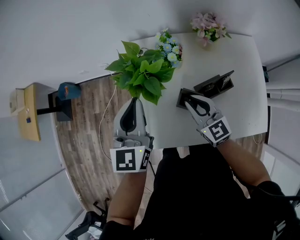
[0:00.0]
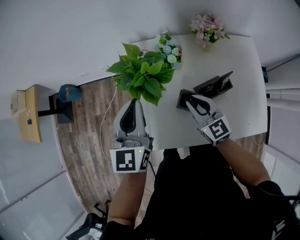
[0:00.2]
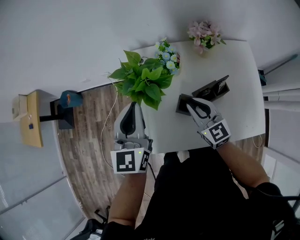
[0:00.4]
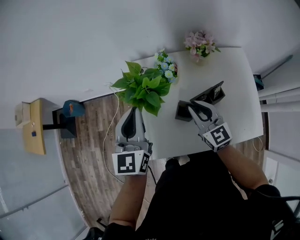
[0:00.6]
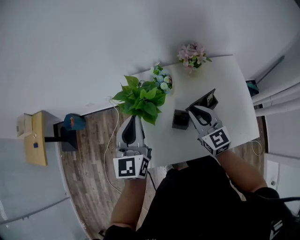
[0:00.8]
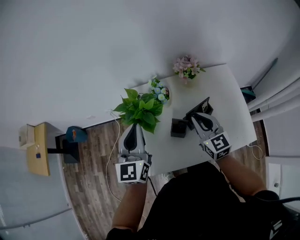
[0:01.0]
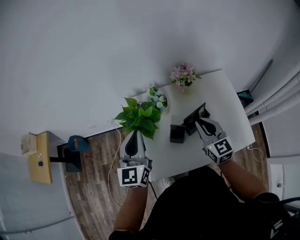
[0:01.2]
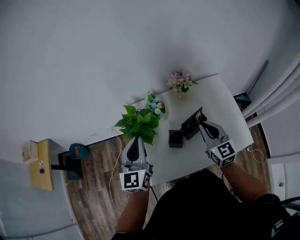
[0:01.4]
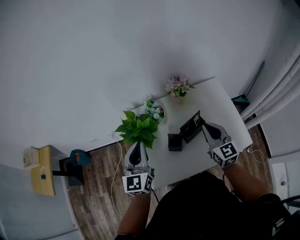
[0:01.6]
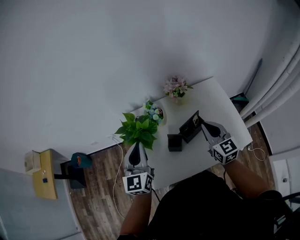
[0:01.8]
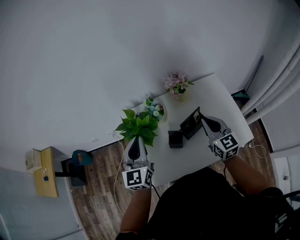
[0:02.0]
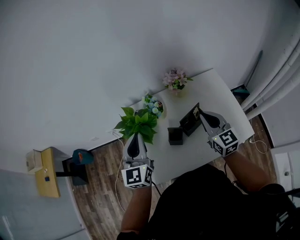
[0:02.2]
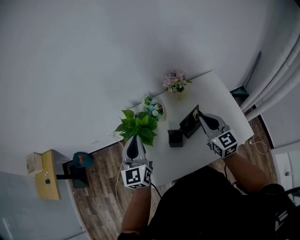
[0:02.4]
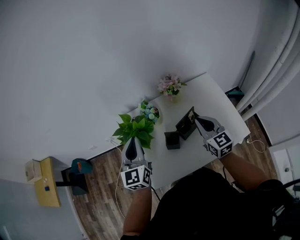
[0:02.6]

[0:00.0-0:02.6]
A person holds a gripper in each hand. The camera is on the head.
0:00.0 to 0:01.2: The left gripper heads upward, covering some 10 cm. Meanwhile the right gripper travels upward and to the right by some 15 cm, and changes its angle by approximately 20 degrees.
0:01.2 to 0:02.6: The grippers move only a little.

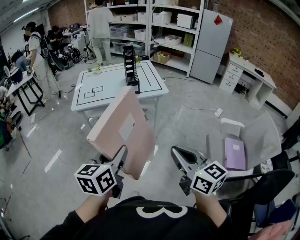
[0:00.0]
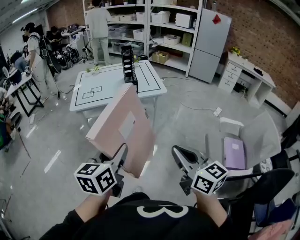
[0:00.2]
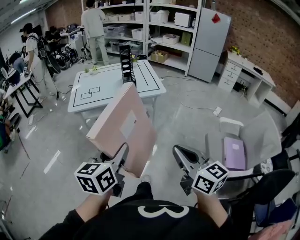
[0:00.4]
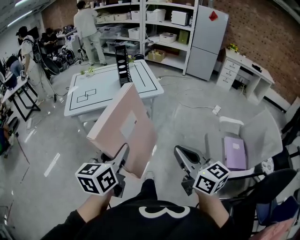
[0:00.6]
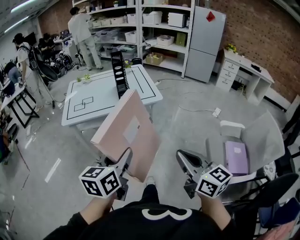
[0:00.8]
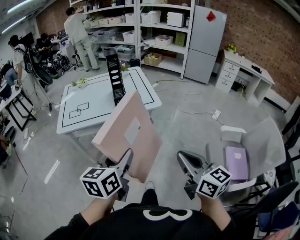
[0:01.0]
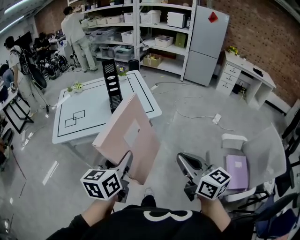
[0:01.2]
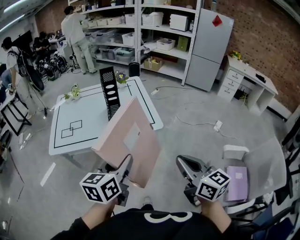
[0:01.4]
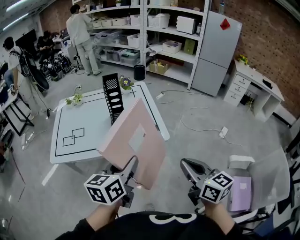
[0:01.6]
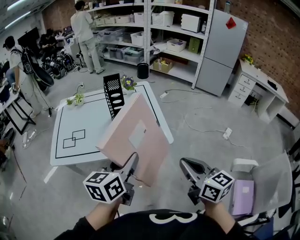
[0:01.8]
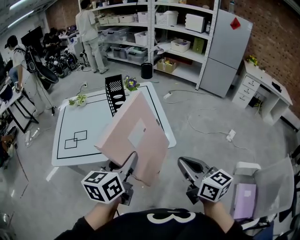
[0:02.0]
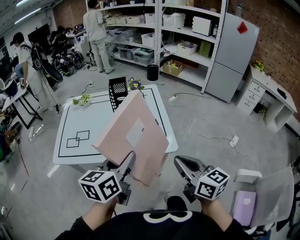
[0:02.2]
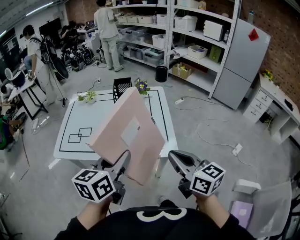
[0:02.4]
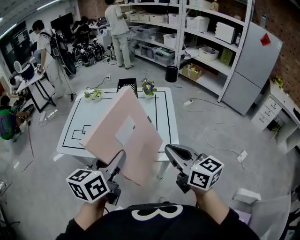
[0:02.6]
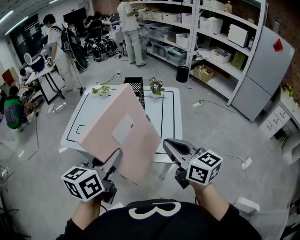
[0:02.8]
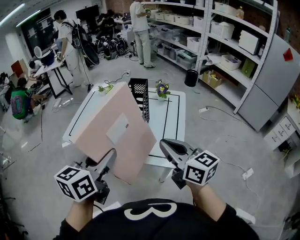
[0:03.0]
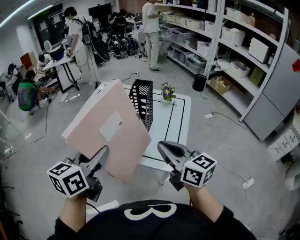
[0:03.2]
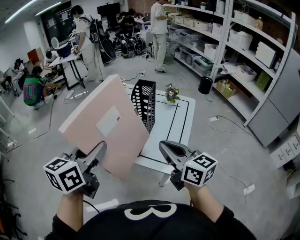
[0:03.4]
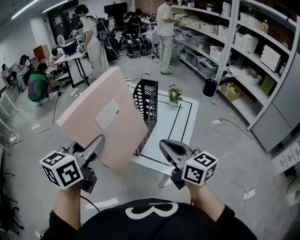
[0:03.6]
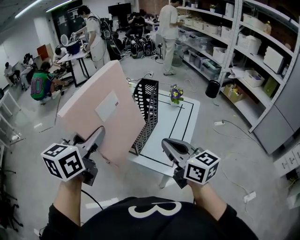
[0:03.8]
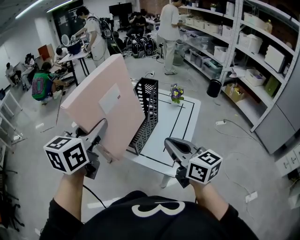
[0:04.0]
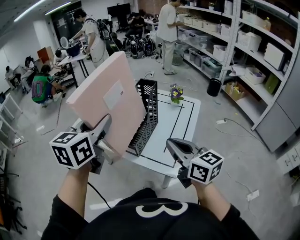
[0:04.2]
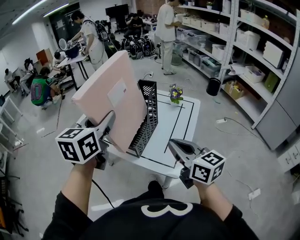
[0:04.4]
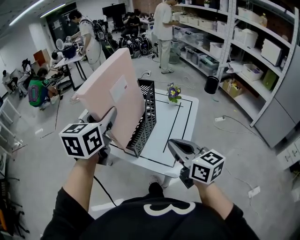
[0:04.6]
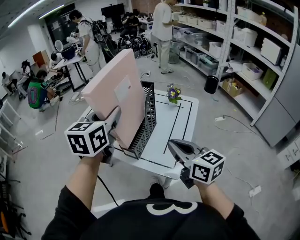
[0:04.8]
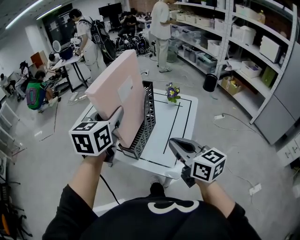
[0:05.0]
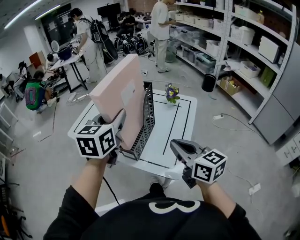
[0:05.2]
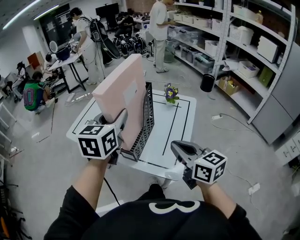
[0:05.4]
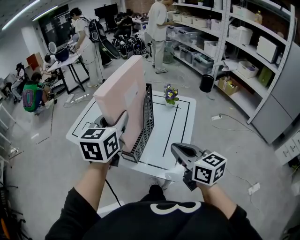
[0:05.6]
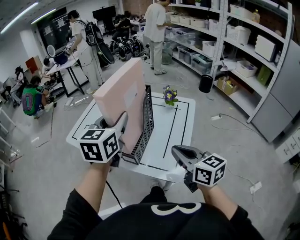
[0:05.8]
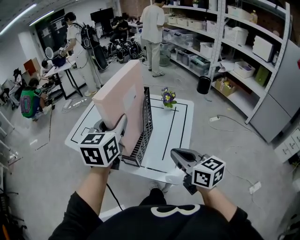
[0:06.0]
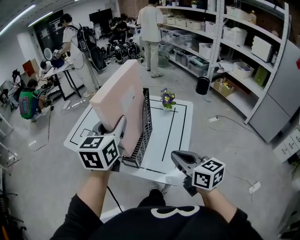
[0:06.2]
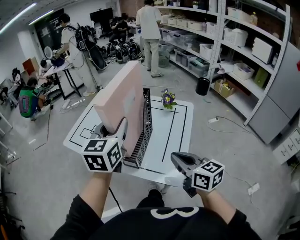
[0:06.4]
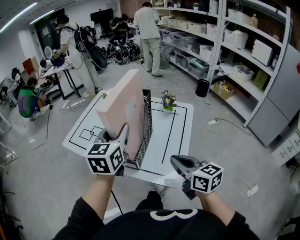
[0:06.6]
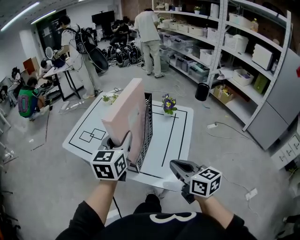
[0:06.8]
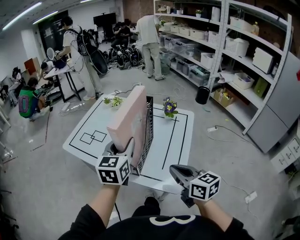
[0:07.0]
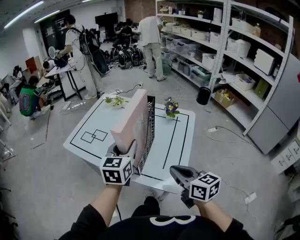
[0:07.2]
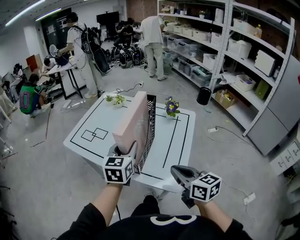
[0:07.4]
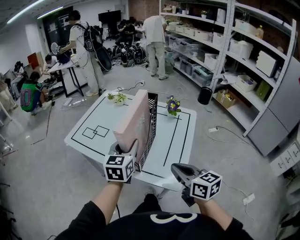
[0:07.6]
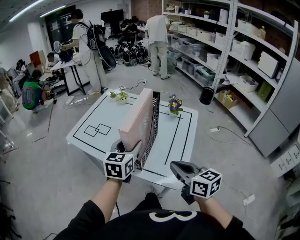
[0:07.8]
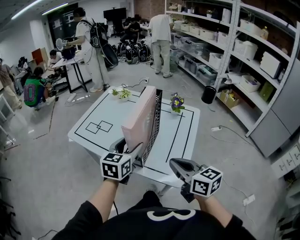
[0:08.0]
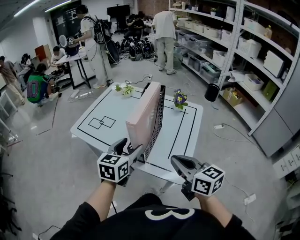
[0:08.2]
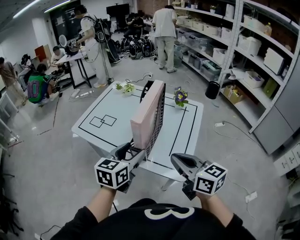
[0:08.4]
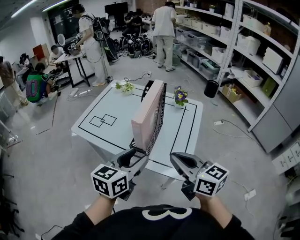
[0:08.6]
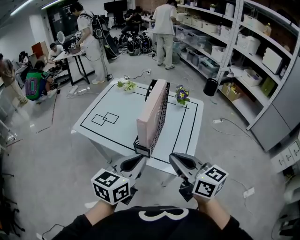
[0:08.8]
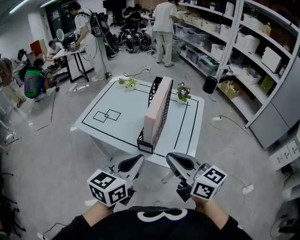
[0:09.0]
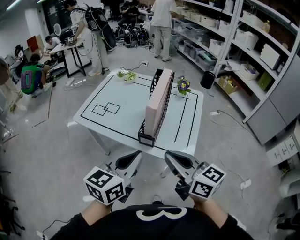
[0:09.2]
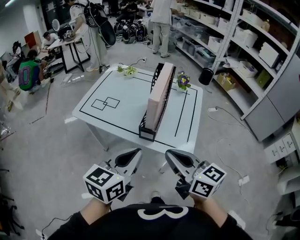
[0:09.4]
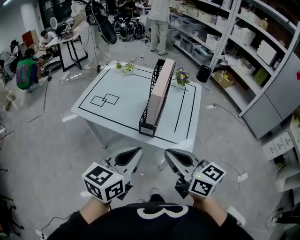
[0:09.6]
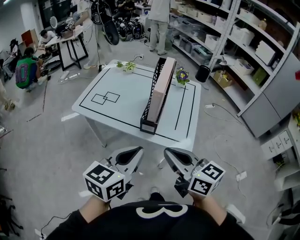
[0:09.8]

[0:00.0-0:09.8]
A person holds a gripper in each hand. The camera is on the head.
0:00.0 to 0:01.4: Both grippers move forward, roughly 35 cm.
0:01.4 to 0:02.8: The right gripper changes place by about 30 cm, and swivels approximately 30 degrees; the left gripper moves approximately 15 cm, and rotates roughly 20 degrees.
0:02.8 to 0:04.2: The right gripper is displaced forward and to the right by approximately 5 cm; the left gripper travels forward and upward by about 10 cm, and turns by about 30 degrees.
0:04.2 to 0:05.6: The left gripper heads forward and to the right, covering some 10 cm.
0:05.6 to 0:07.0: The right gripper moves downward, approximately 5 cm; the left gripper heads downward, covering approximately 10 cm.
0:07.0 to 0:08.4: The right gripper shifts by roughly 5 cm. The left gripper goes roughly 10 cm backward, and opens up.
0:08.4 to 0:09.8: The right gripper heads to the left and backward, covering about 15 cm. Meanwhile the left gripper travels backward and to the left by roughly 15 cm, and closes.

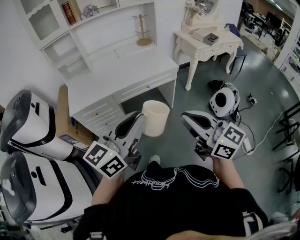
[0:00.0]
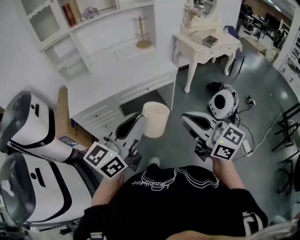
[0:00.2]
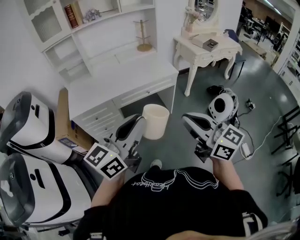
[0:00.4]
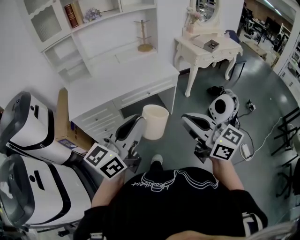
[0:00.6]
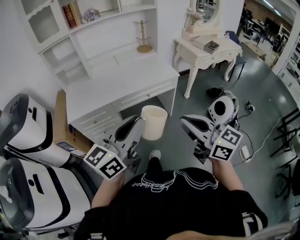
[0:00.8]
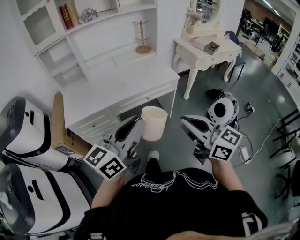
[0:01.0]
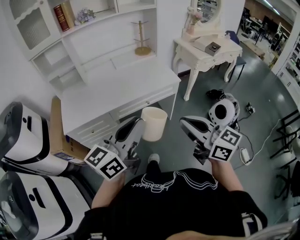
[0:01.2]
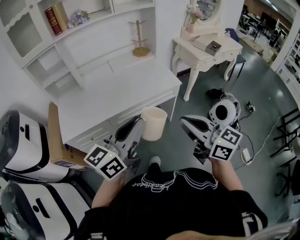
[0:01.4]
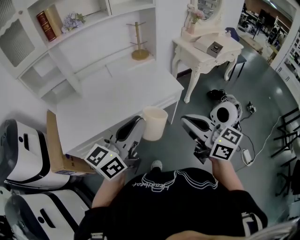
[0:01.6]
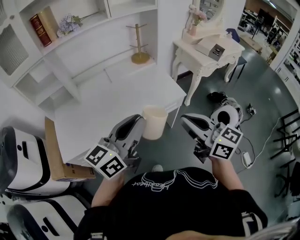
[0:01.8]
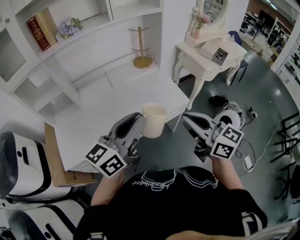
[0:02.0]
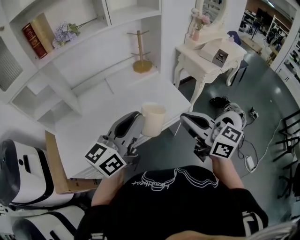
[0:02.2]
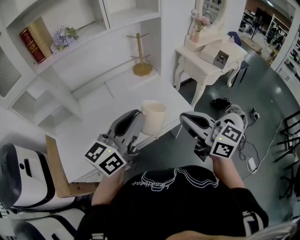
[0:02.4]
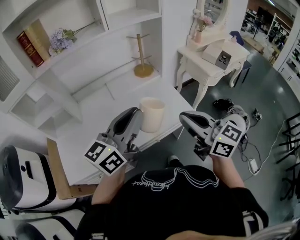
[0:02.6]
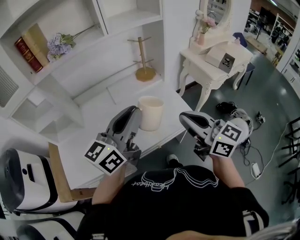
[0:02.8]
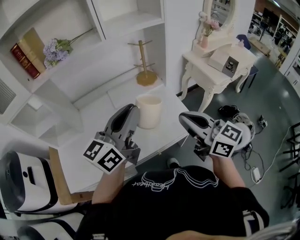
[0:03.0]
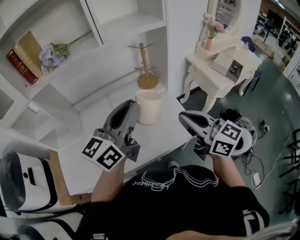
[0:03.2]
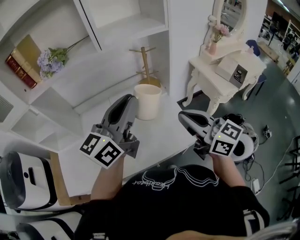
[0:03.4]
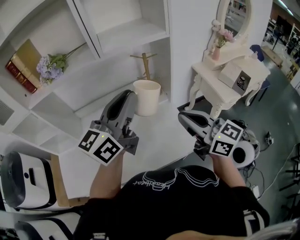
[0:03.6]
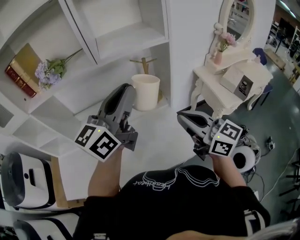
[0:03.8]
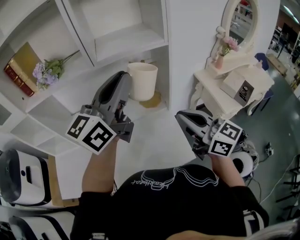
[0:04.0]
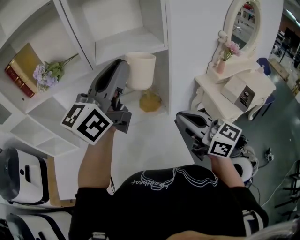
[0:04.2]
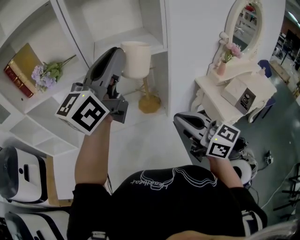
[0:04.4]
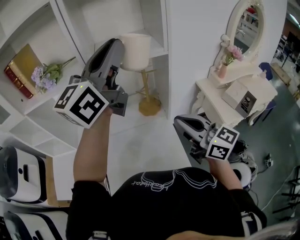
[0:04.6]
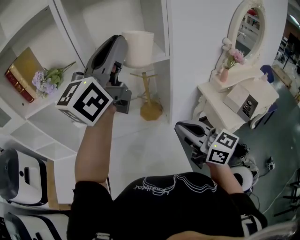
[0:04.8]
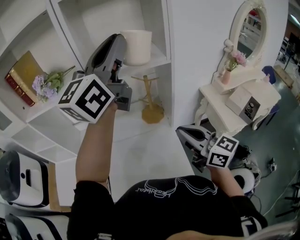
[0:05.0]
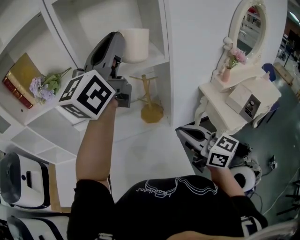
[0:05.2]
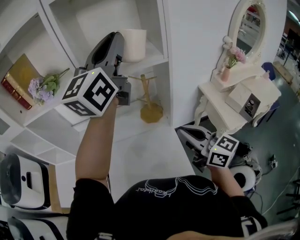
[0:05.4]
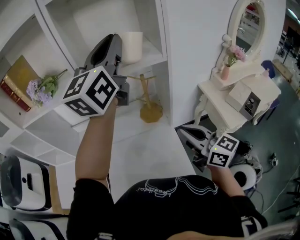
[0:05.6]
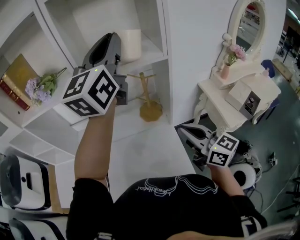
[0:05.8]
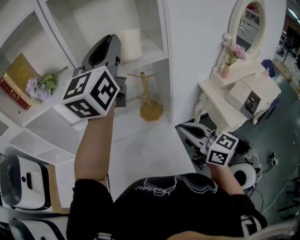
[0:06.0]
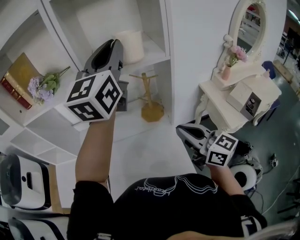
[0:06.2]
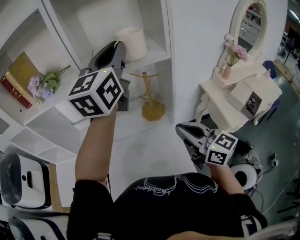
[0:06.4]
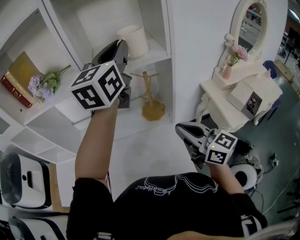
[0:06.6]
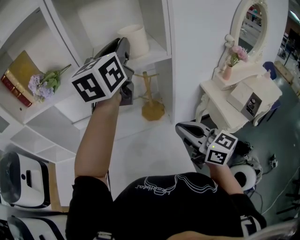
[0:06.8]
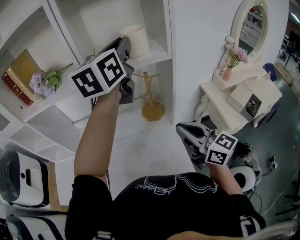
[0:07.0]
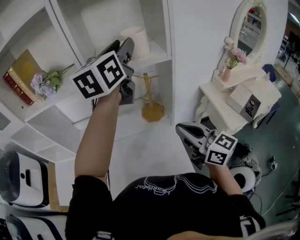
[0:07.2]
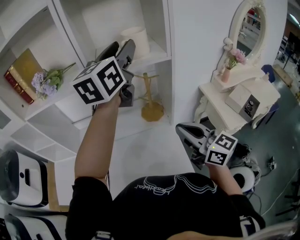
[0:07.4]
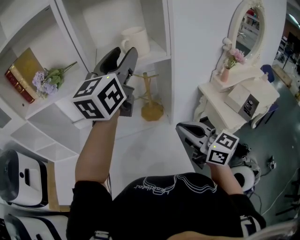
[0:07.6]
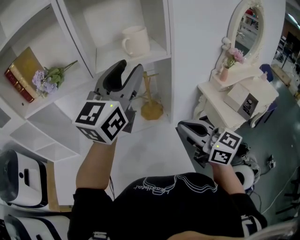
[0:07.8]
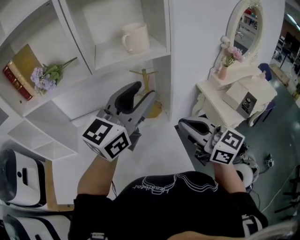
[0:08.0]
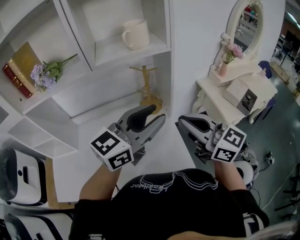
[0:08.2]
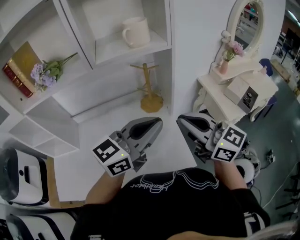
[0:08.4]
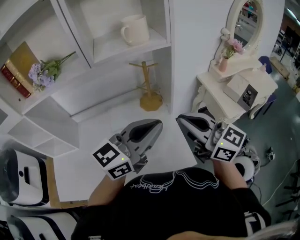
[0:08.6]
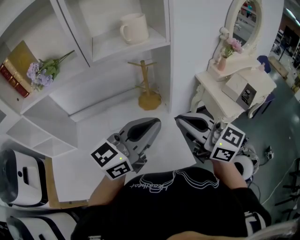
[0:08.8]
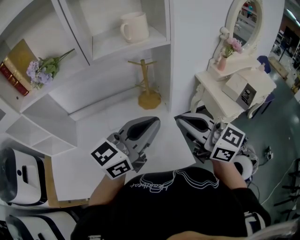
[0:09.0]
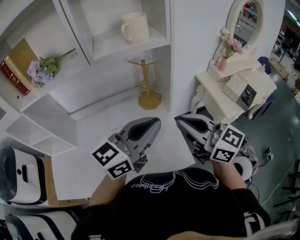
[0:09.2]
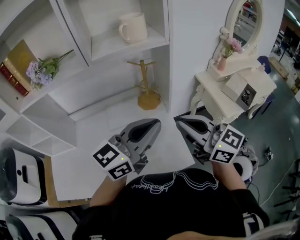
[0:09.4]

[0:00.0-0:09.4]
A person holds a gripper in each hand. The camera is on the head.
0:00.0 to 0:01.6: Both grippers move forward, about 25 cm.
0:01.6 to 0:03.2: The two grippers go roughly 35 cm forward.
0:03.2 to 0:04.8: The right gripper shifts about 15 cm forward and to the right. Meanwhile the left gripper shifts about 30 cm upward, forward and to the right, and changes its angle by roughly 30 degrees.
0:04.8 to 0:06.2: The left gripper is displaced forward by approximately 5 cm, and swivels some 20 degrees.
0:06.2 to 0:07.8: The left gripper is displaced backward and downward by about 10 cm, and opens.
0:07.8 to 0:09.4: The left gripper goes about 20 cm downward and backward, rotates some 30 degrees, and closes up.

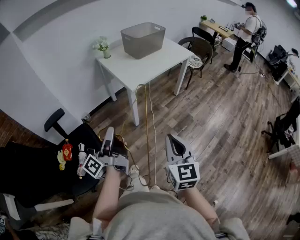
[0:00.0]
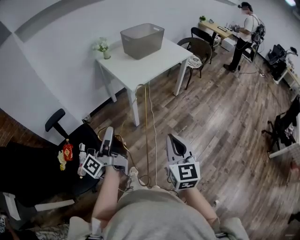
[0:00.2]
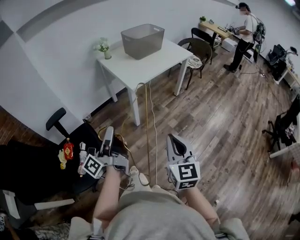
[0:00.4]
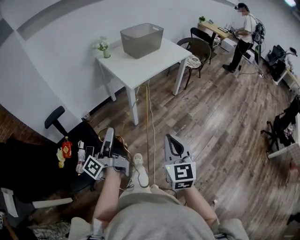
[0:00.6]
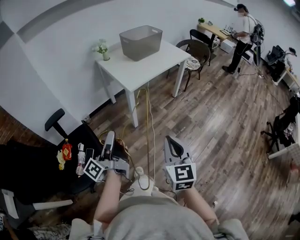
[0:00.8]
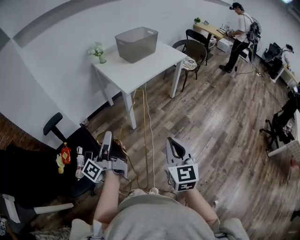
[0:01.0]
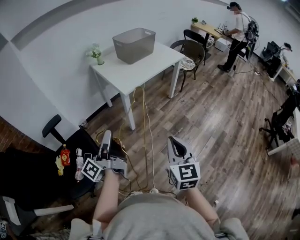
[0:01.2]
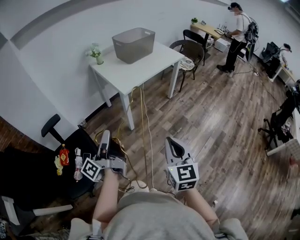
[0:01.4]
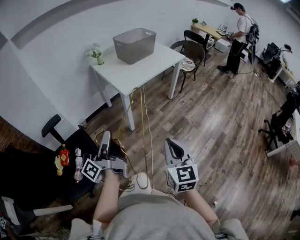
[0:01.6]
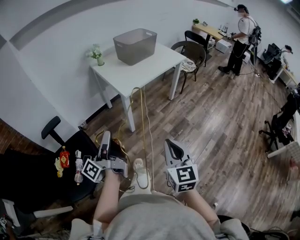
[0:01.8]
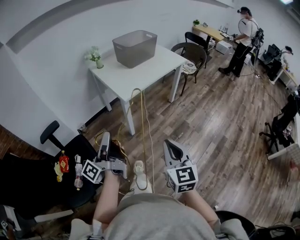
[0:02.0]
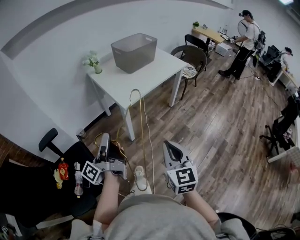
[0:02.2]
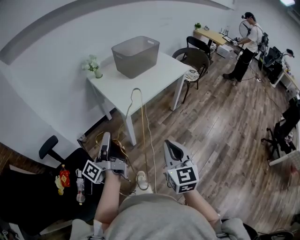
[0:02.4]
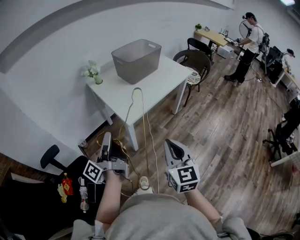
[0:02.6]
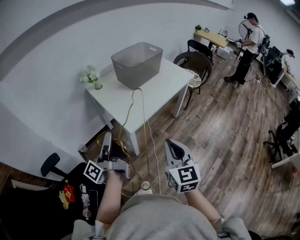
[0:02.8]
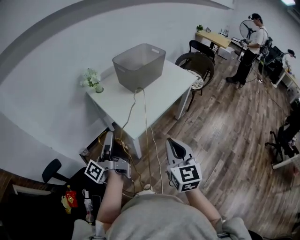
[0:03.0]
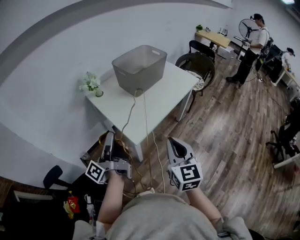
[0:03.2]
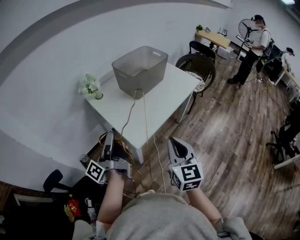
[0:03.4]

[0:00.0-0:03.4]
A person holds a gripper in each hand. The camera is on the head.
0:00.0 to 0:01.6: The grippers stay close to where they were, moving slightly.
0:01.6 to 0:03.4: The two grippers travel together, forward, some 40 cm.
